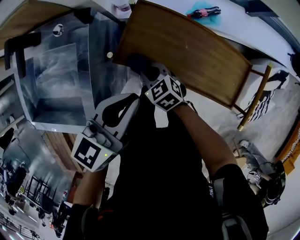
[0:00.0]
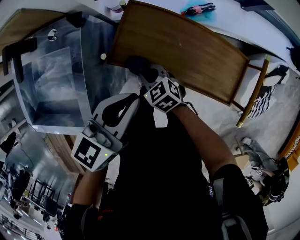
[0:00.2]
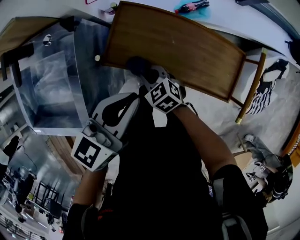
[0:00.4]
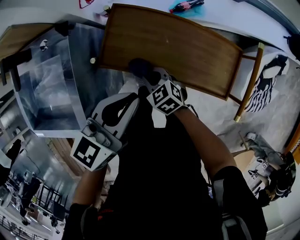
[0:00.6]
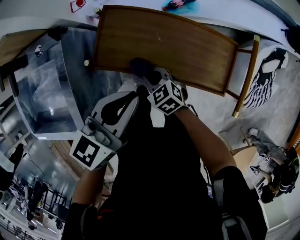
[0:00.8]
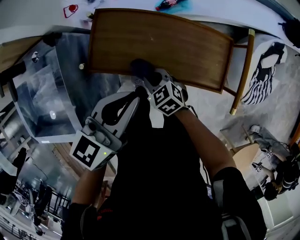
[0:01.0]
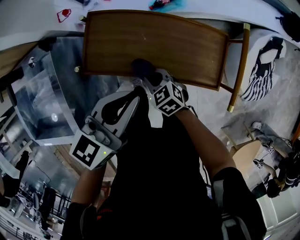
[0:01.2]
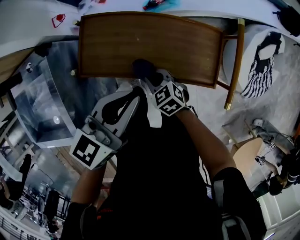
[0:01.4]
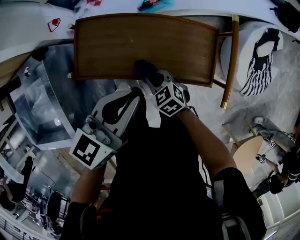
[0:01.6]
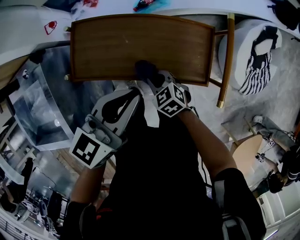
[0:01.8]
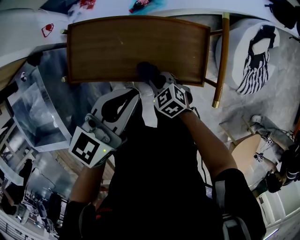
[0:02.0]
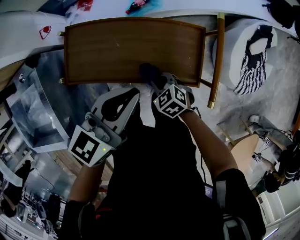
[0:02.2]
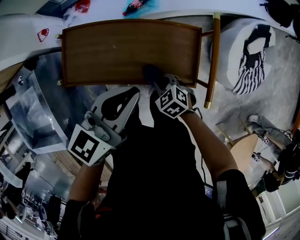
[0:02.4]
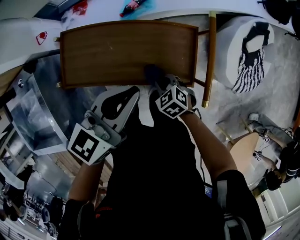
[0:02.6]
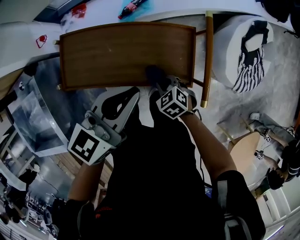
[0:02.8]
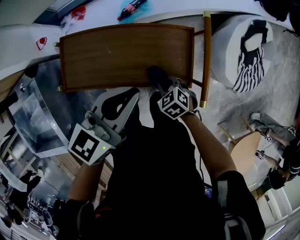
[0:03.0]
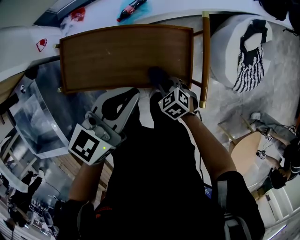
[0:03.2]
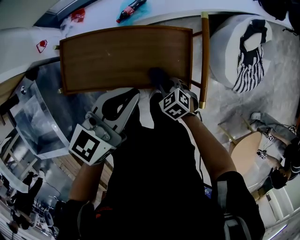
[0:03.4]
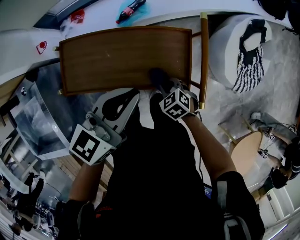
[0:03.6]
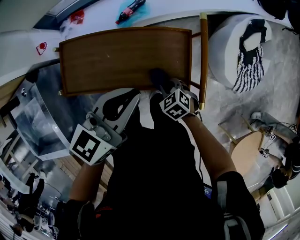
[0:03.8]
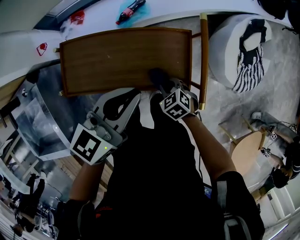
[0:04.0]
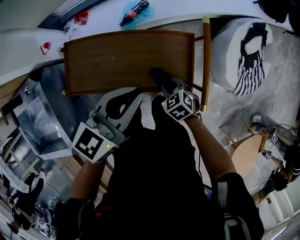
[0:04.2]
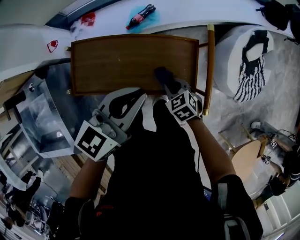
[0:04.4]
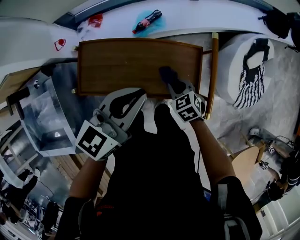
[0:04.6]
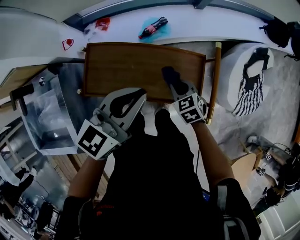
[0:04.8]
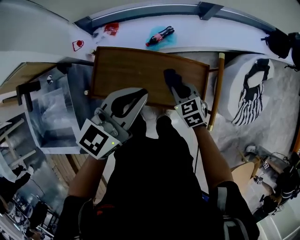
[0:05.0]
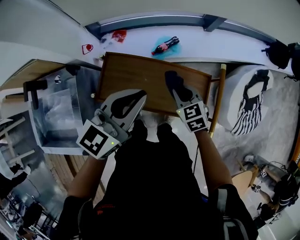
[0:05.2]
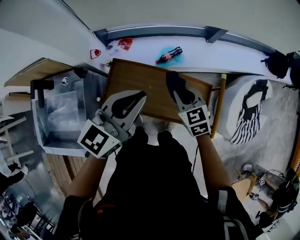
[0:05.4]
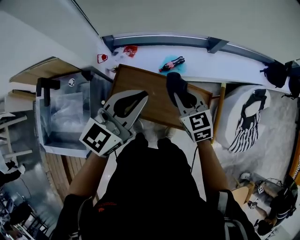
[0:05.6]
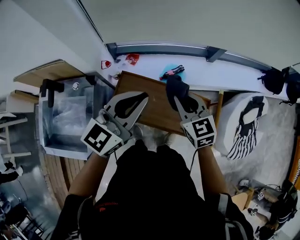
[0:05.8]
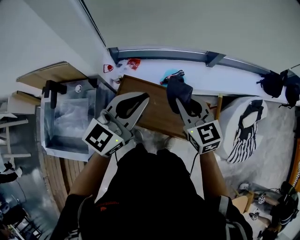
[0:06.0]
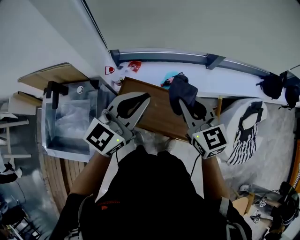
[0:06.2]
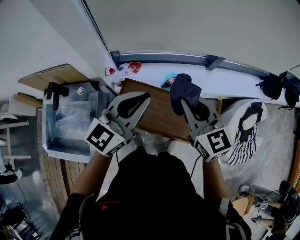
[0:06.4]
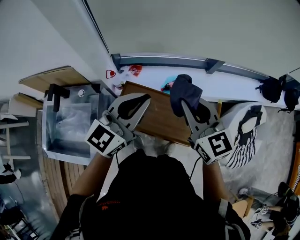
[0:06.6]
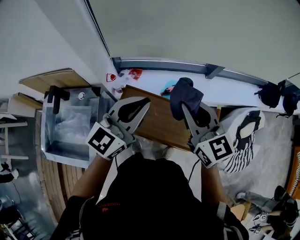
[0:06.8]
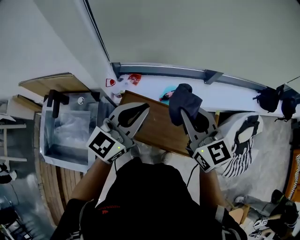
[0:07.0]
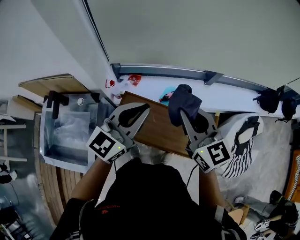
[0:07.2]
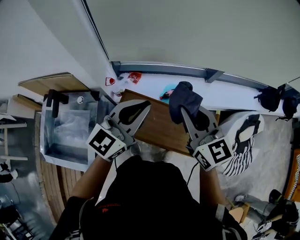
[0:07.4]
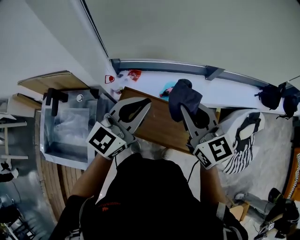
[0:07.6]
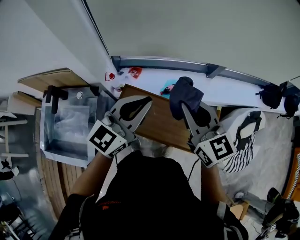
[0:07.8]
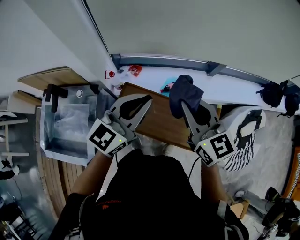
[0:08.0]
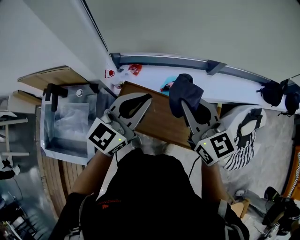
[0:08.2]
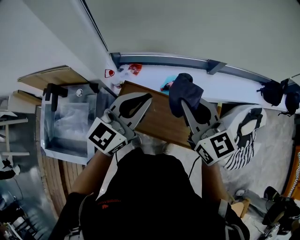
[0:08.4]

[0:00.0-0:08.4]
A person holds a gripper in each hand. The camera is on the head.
0.0 to 1.4 s: The two grippers go approximately 20 cm to the right.
1.4 to 2.8 s: The two grippers go some 15 cm to the right.
2.8 to 4.2 s: The grippers stay close to where they were, moving slightly.
4.2 to 5.6 s: The right gripper is displaced upward, to the left and forward by about 30 cm, and rotates approximately 30 degrees. Meanwhile the left gripper is displaced to the left and upward by roughly 20 cm, and changes its angle by roughly 20 degrees.
5.6 to 7.0 s: The right gripper goes some 20 cm upward, and rotates roughly 20 degrees, while the left gripper shifts roughly 5 cm upward.
7.0 to 8.4 s: The grippers make only small movements.

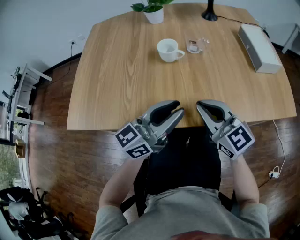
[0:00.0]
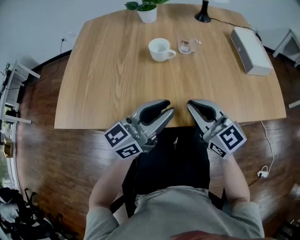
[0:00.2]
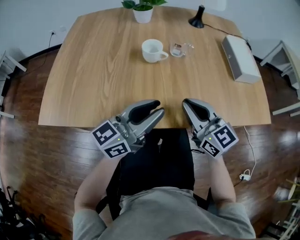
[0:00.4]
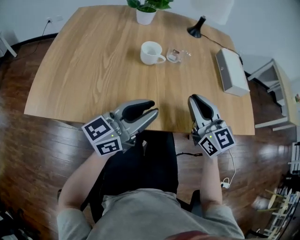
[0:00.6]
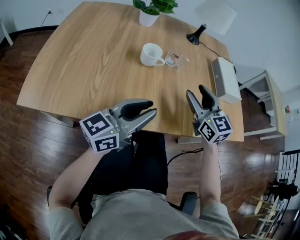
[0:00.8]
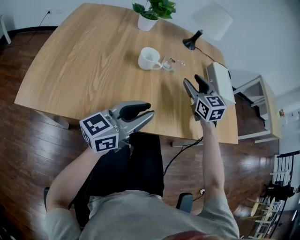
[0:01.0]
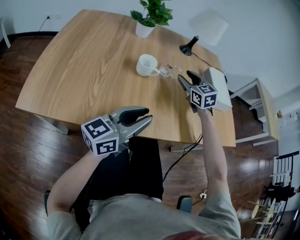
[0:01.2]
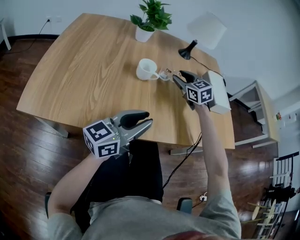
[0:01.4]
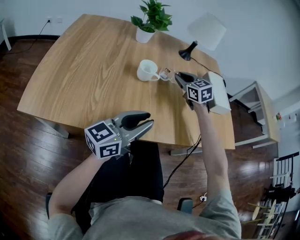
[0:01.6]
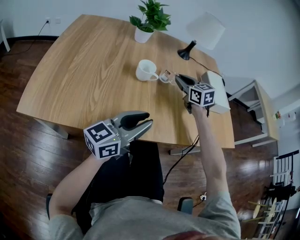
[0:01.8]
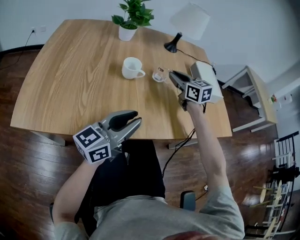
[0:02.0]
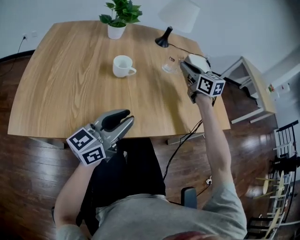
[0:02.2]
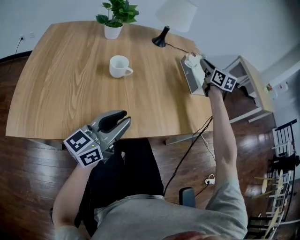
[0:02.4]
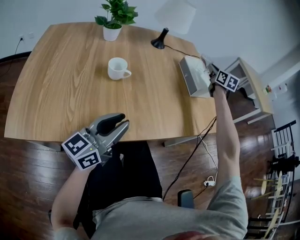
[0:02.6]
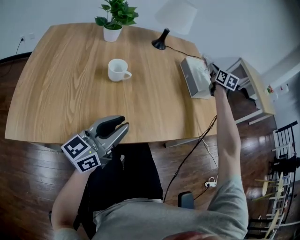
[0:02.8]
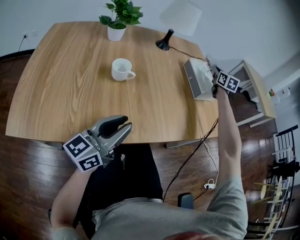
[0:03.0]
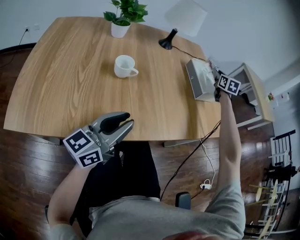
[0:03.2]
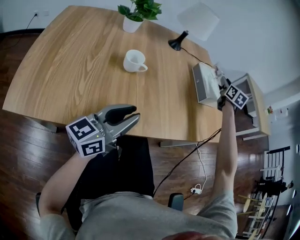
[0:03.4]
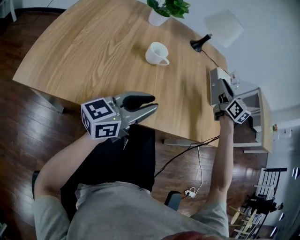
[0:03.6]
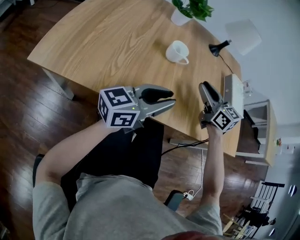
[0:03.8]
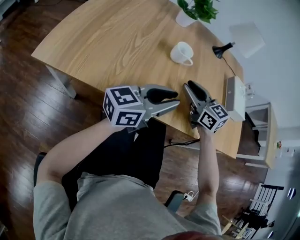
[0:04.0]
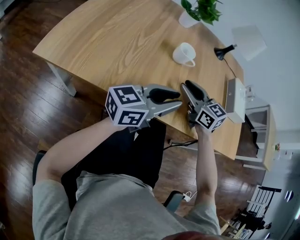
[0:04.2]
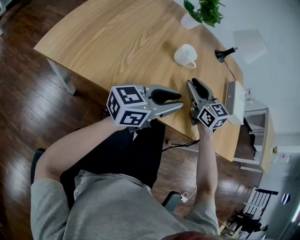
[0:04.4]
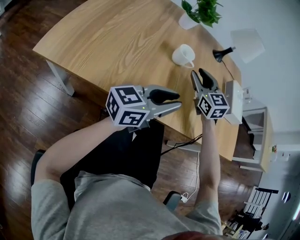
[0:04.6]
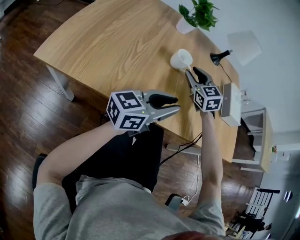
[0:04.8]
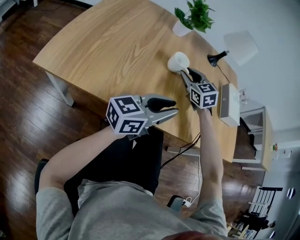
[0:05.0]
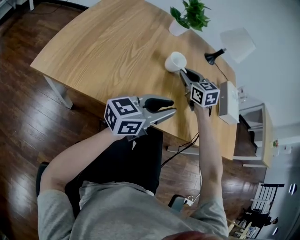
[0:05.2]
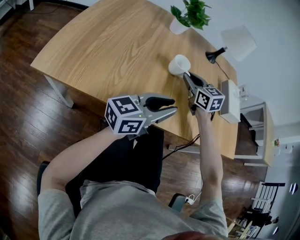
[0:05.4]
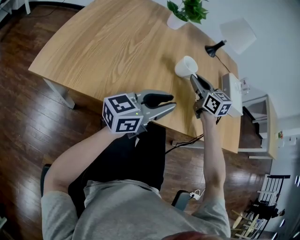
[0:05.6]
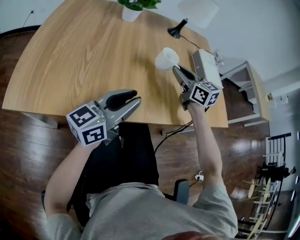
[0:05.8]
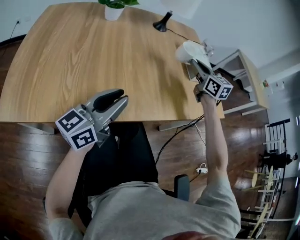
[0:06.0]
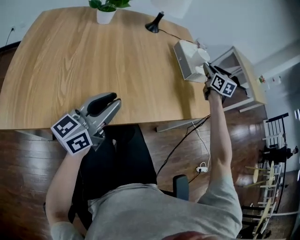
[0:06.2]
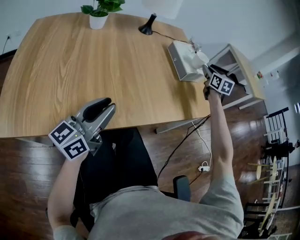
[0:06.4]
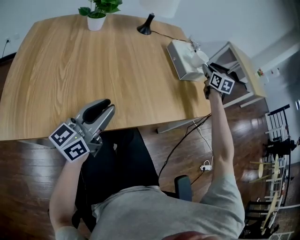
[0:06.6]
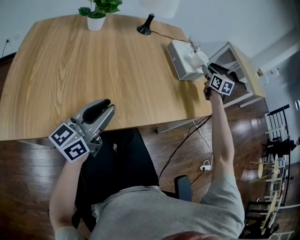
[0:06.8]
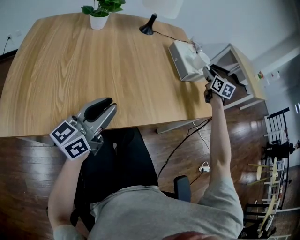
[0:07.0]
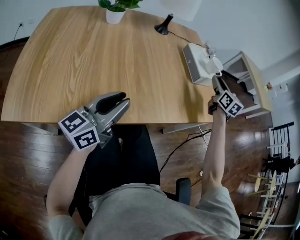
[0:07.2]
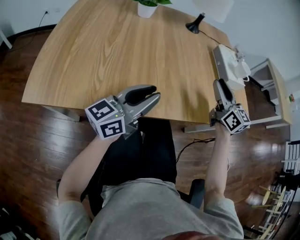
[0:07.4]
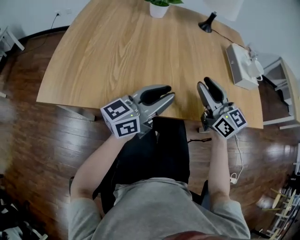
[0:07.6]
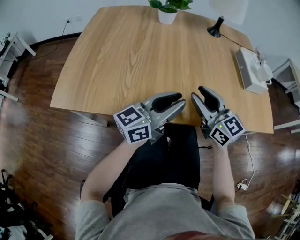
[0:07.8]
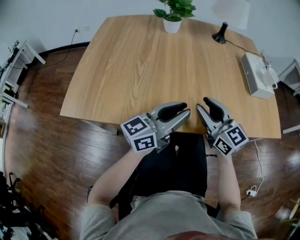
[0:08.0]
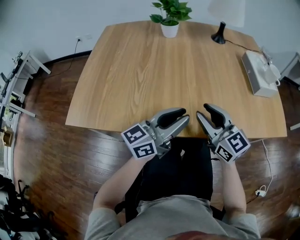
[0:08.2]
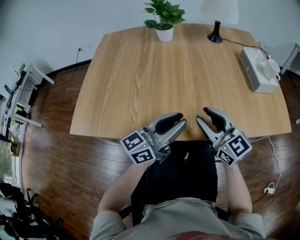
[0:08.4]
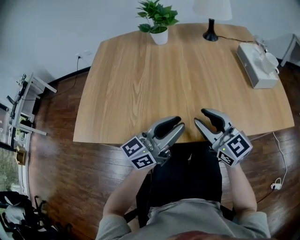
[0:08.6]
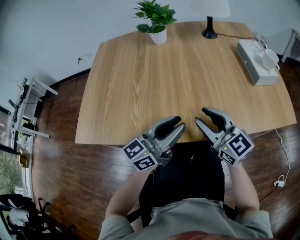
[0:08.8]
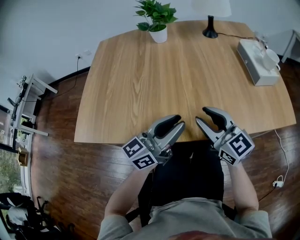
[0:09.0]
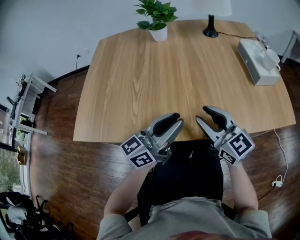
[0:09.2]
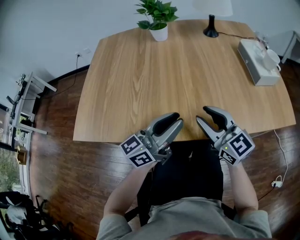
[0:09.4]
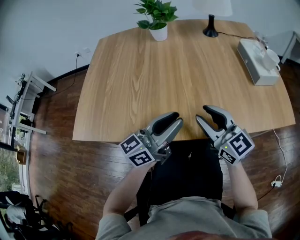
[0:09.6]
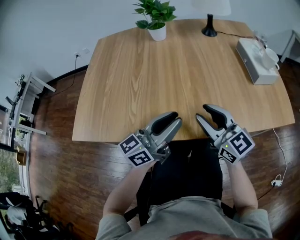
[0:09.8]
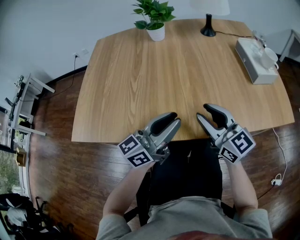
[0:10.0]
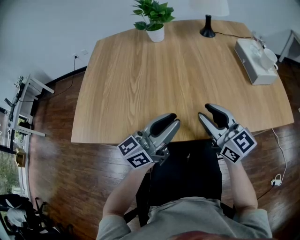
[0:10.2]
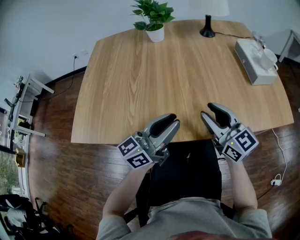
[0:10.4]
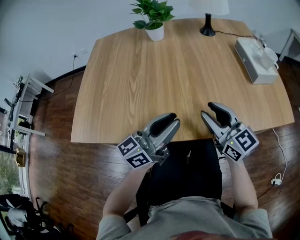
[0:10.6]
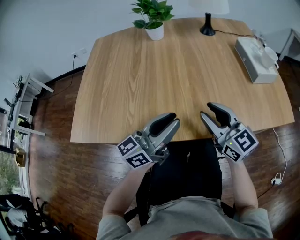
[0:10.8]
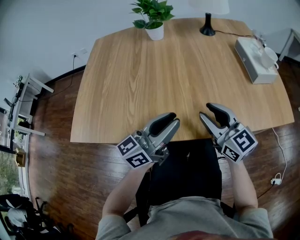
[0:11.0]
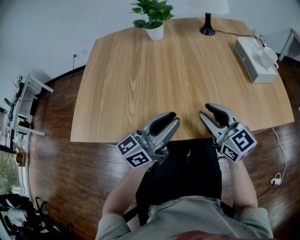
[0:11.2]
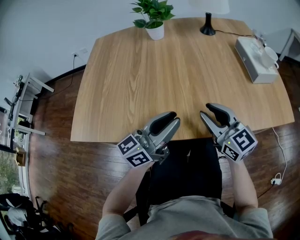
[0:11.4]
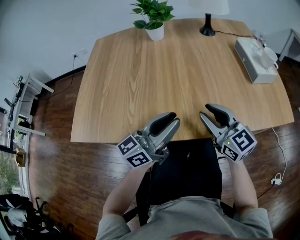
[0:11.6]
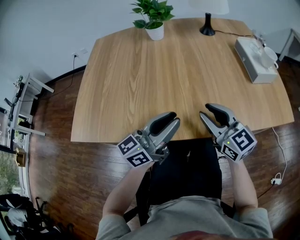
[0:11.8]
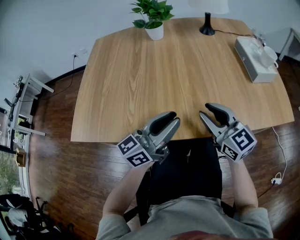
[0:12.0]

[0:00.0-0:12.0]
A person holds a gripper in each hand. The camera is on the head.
0.0 to 1.6 s: The right gripper goes about 25 cm forward, changes its angle by some 30 degrees, and opens, then closes again.
1.6 to 3.0 s: The right gripper moves to the right and forward, some 35 cm, and swivels approximately 40 degrees.
3.0 to 4.4 s: The right gripper shifts by about 50 cm, and changes its angle by some 50 degrees.
4.4 to 6.0 s: The right gripper travels to the right by approximately 25 cm, and changes its angle by roughly 30 degrees.
6.0 to 7.6 s: The right gripper shifts about 20 cm backward and to the left, and changes its angle by approximately 20 degrees.
7.6 to 9.0 s: The right gripper ends up some 5 cm from where it was.
9.0 to 12.0 s: The grippers move only a little.

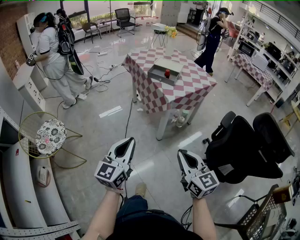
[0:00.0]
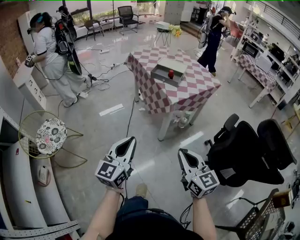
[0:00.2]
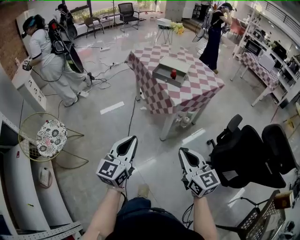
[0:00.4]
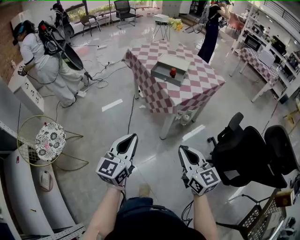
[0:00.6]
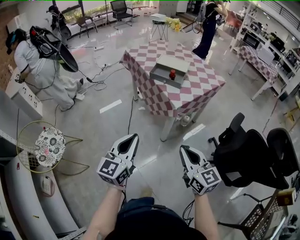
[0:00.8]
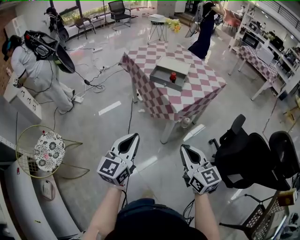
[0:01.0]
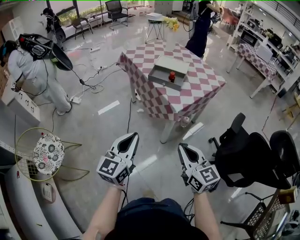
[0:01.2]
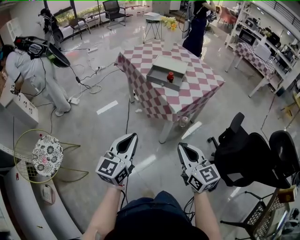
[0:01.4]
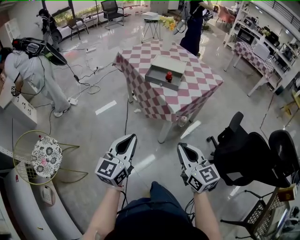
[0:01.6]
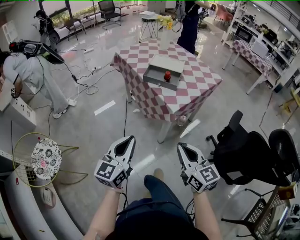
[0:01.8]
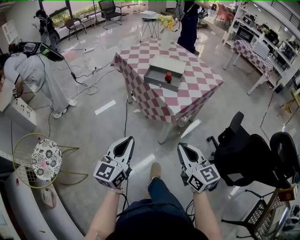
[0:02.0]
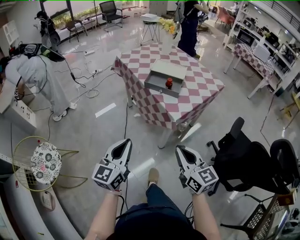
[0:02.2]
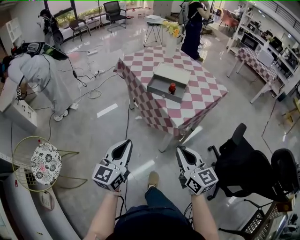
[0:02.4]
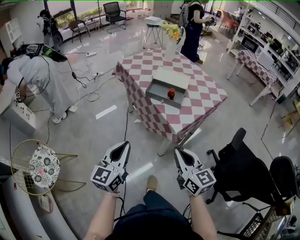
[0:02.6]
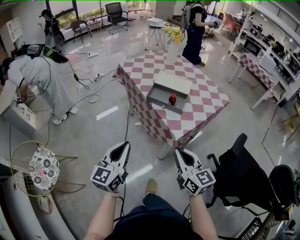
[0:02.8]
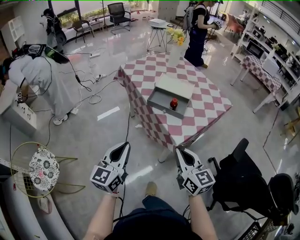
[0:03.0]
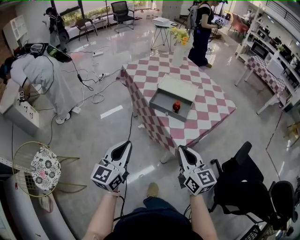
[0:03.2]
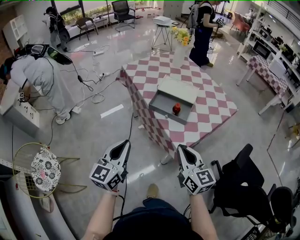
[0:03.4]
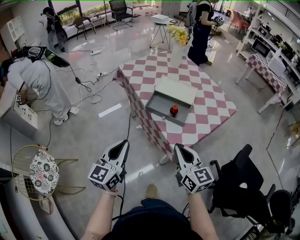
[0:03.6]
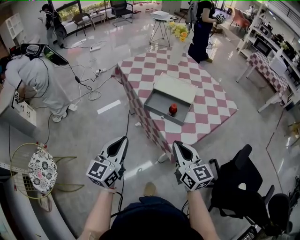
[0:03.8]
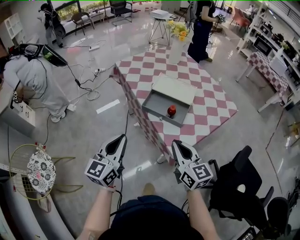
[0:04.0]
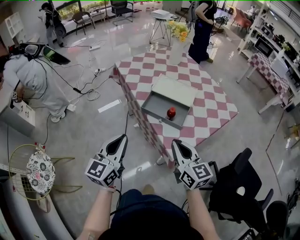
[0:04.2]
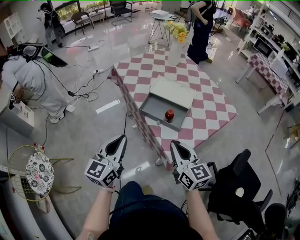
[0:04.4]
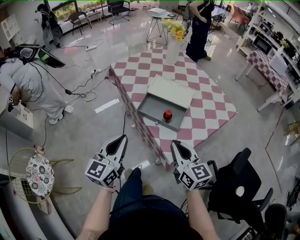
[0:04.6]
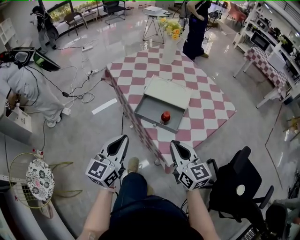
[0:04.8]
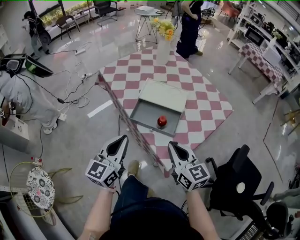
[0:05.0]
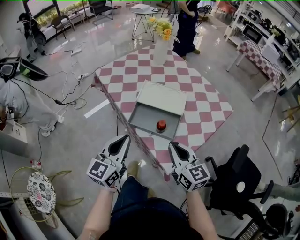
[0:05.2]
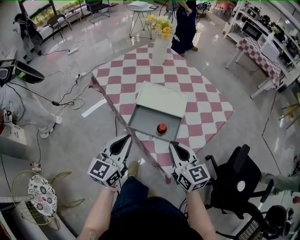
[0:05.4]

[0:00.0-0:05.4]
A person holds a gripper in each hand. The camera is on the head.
0.0 to 1.4 s: Both grippers travel together forward, roughly 20 cm.
1.4 to 2.8 s: The grippers both shift forward by roughly 15 cm.
2.8 to 4.0 s: The two grippers go roughly 15 cm forward.
4.0 to 5.4 s: The right gripper goes some 10 cm forward; the left gripper is displaced forward and to the right by approximately 15 cm.
